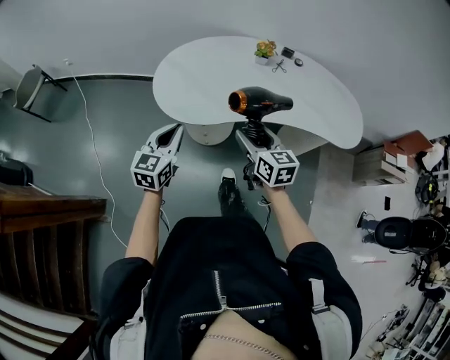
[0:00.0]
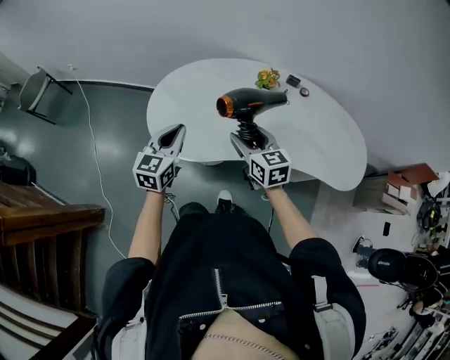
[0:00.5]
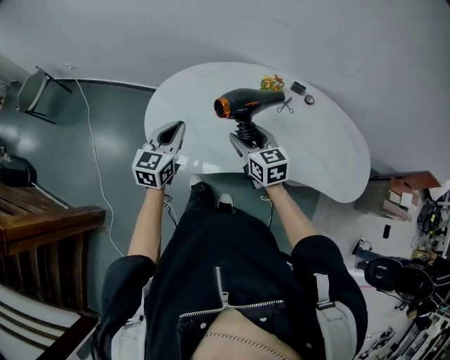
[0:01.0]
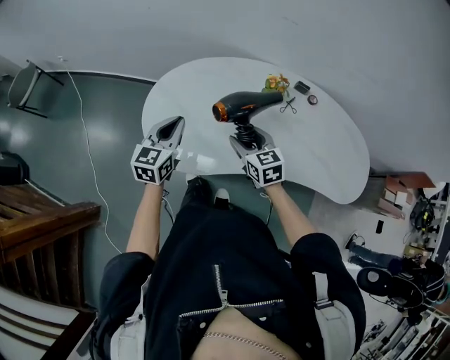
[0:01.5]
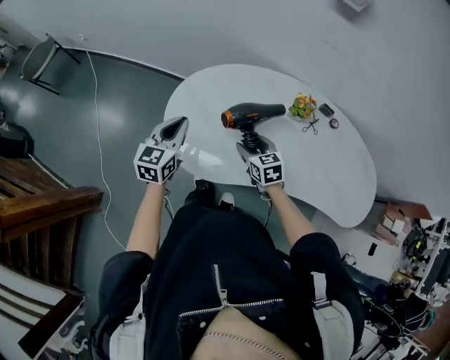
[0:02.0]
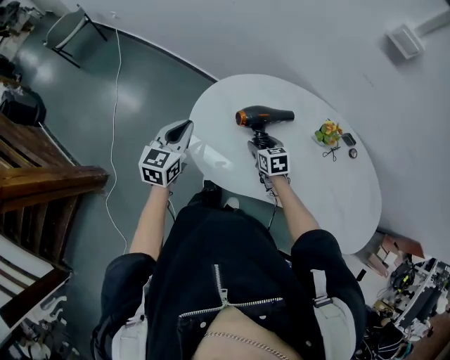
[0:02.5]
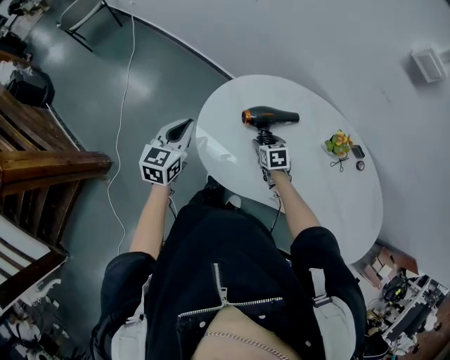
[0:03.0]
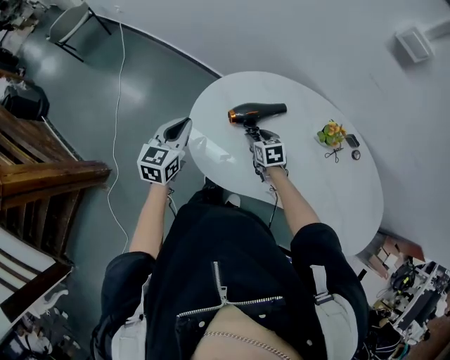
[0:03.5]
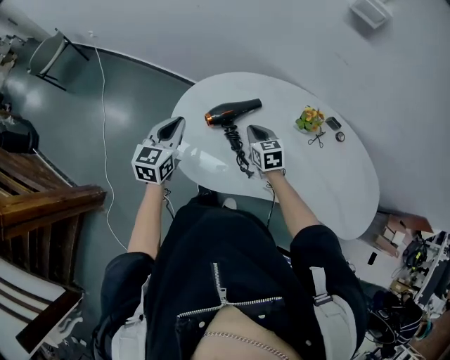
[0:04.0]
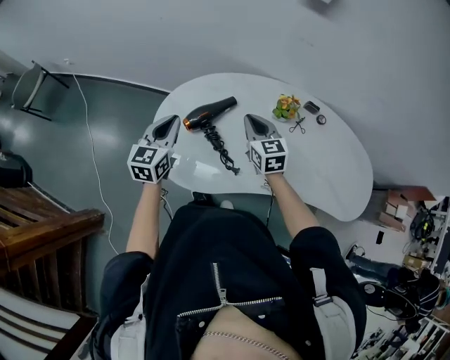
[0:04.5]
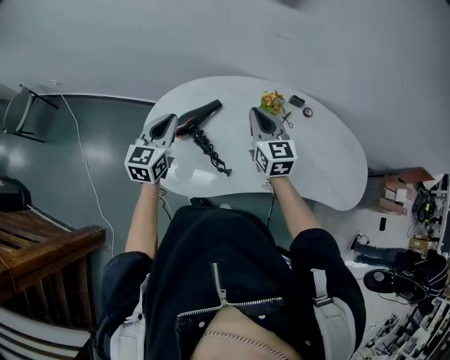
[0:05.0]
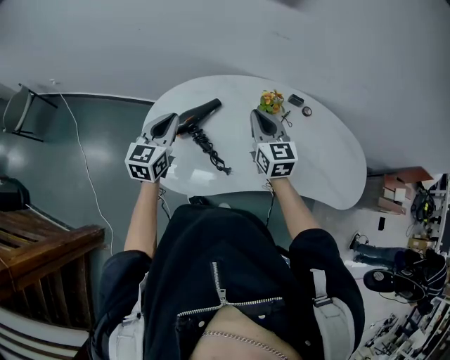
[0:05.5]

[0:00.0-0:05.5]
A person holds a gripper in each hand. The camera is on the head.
0:00.0 to 0:02.0: The left gripper is displaced forward by roughly 30 cm, while the right gripper shifts some 30 cm forward and downward, and changes its angle by some 30 degrees.
0:02.0 to 0:03.5: The right gripper heads forward, downward and to the left, covering roughly 15 cm. Meanwhile the left gripper moves to the left, approximately 10 cm.
0:03.5 to 0:05.5: The left gripper ends up some 20 cm from where it was, and turns by roughly 20 degrees. The right gripper is displaced upward by approximately 25 cm, tips its fingers upward by approximately 40 degrees, and closes.

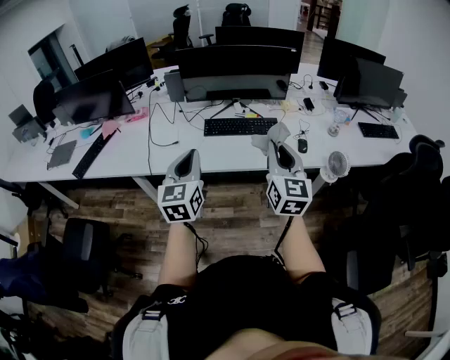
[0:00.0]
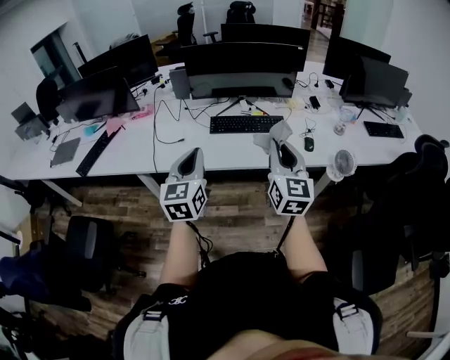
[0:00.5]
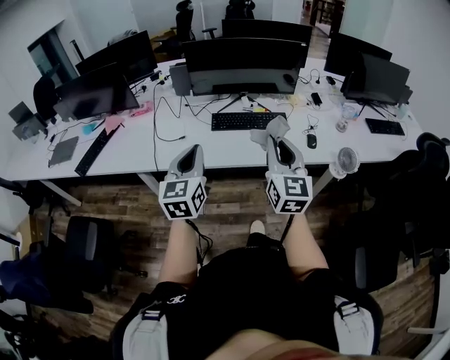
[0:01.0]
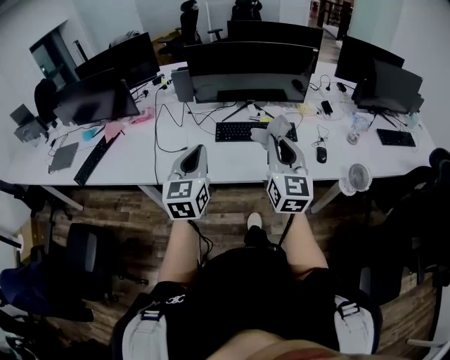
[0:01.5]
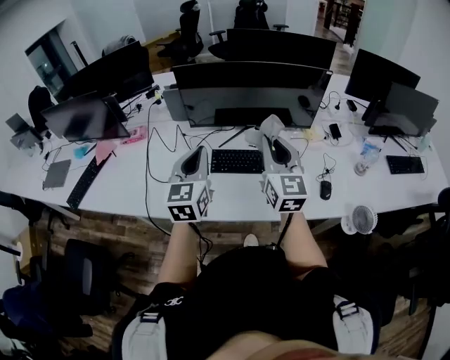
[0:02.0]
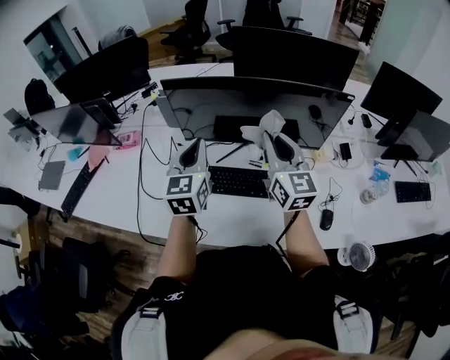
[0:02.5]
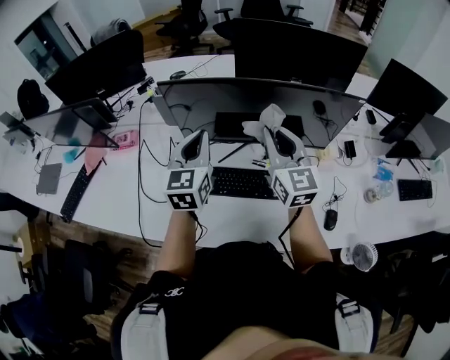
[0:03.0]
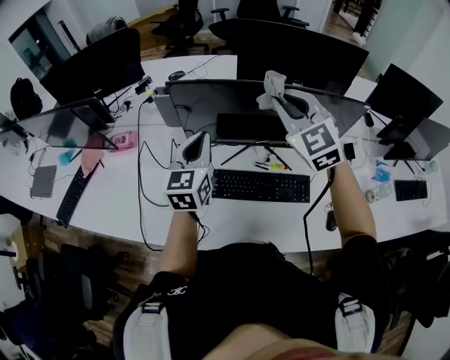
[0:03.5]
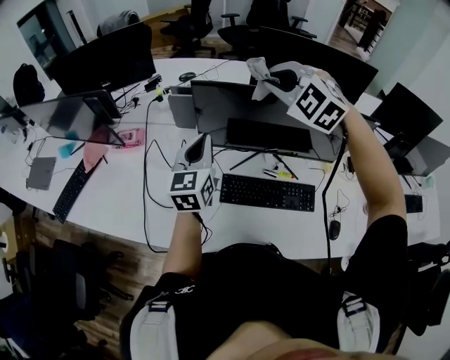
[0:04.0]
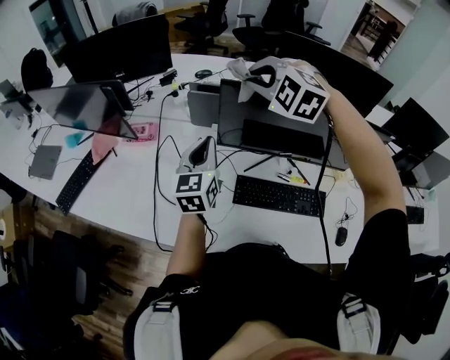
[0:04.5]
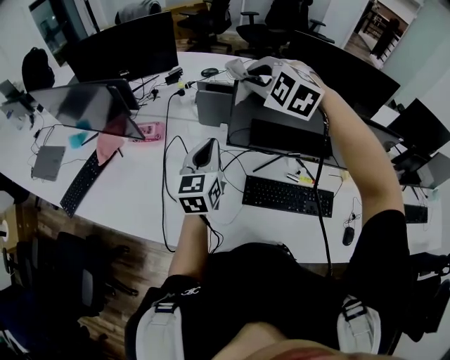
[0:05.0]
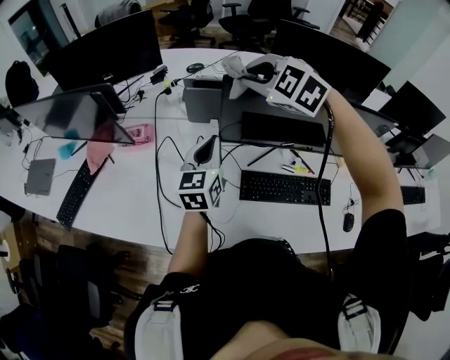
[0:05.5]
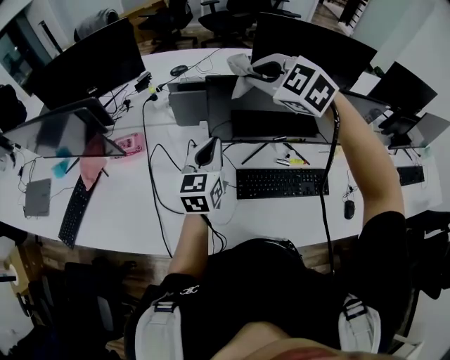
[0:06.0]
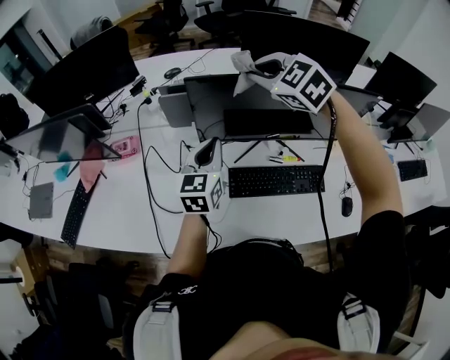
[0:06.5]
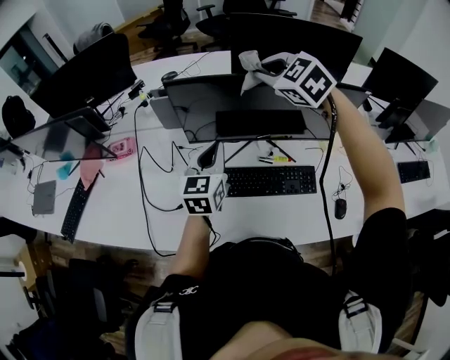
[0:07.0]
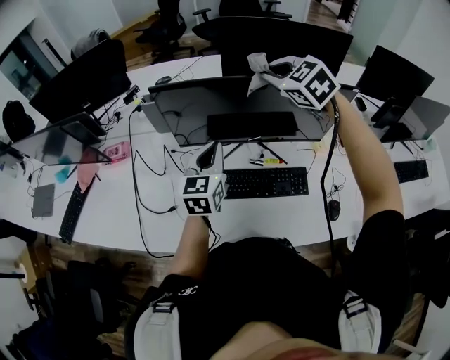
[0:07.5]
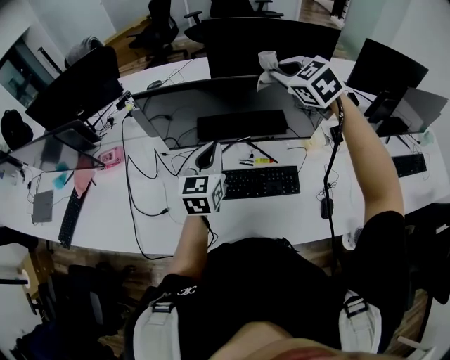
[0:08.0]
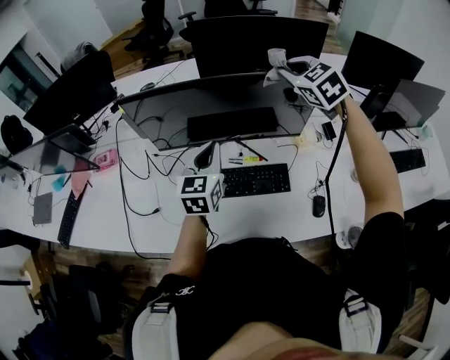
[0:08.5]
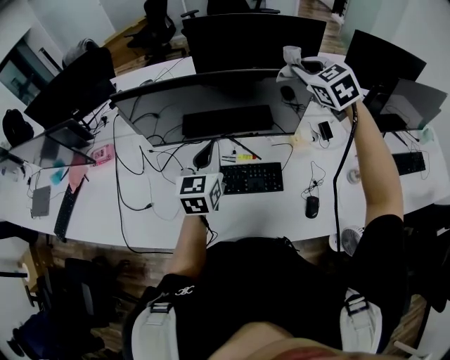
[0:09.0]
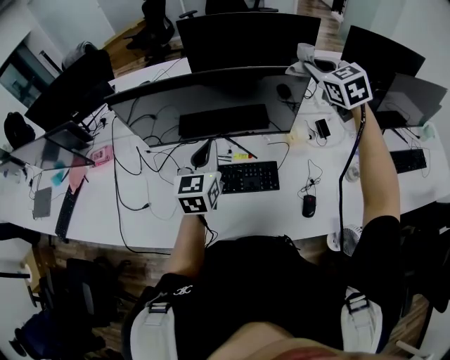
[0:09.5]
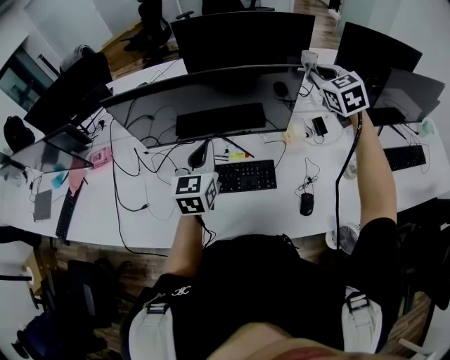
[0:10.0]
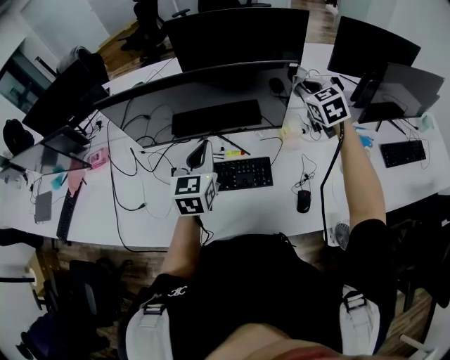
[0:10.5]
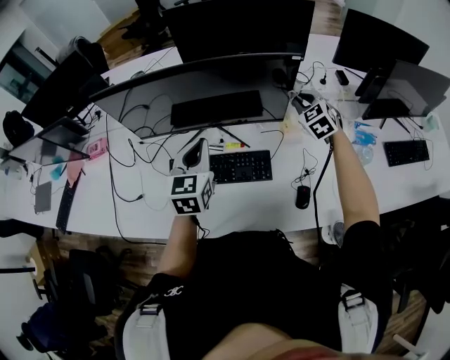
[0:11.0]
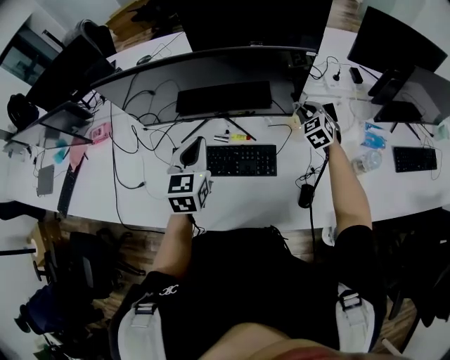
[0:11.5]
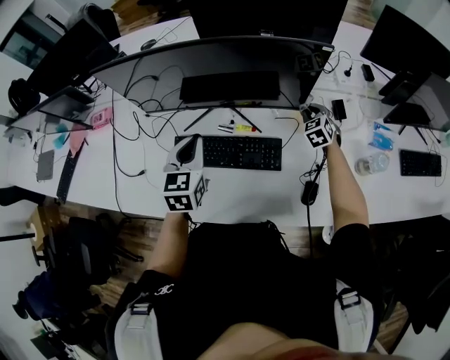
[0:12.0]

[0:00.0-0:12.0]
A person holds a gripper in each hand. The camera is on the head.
0:00.0 to 0:02.0: Both grippers move forward, about 30 cm.
0:02.0 to 0:04.0: Both grippers move forward, approximately 25 cm. The right gripper tips its fingers downward by some 40 degrees.
0:04.0 to 0:06.0: The left gripper shifts approximately 5 cm downward, and goes to the left and returns, approximately 10 cm each way. Meanwhile the right gripper shifts about 10 cm to the left.
0:06.0 to 0:08.0: The left gripper travels to the right by some 20 cm, while the right gripper is displaced to the right by about 30 cm, and changes its angle by approximately 20 degrees.
0:08.0 to 0:10.0: The left gripper heads to the right, covering some 10 cm. Meanwhile the right gripper goes about 25 cm to the right.
0:10.0 to 0:12.0: The left gripper shifts about 5 cm downward. The right gripper shifts some 35 cm downward.

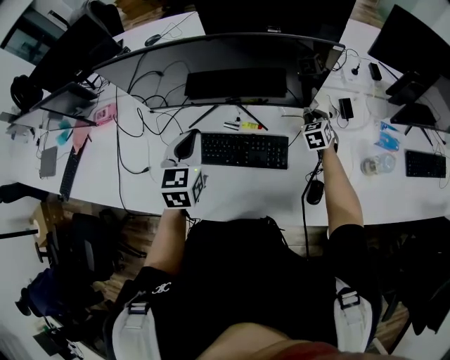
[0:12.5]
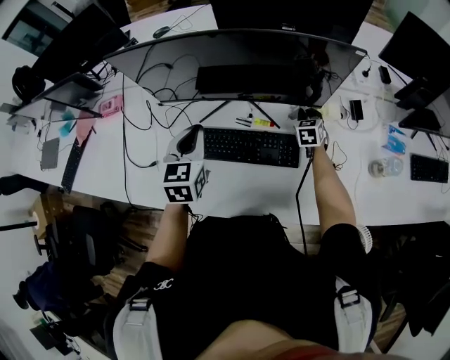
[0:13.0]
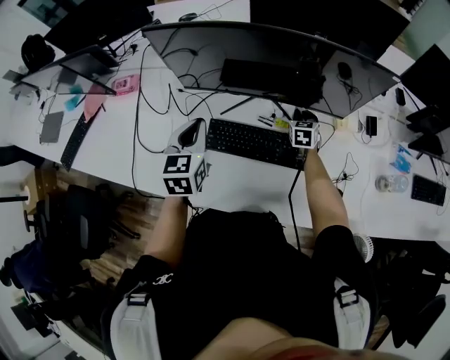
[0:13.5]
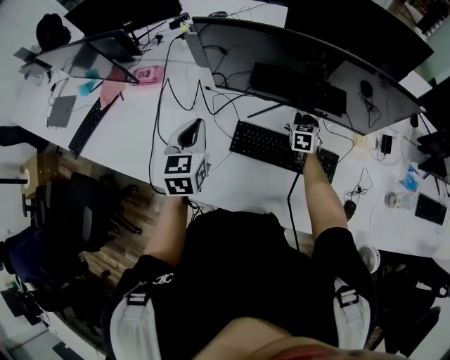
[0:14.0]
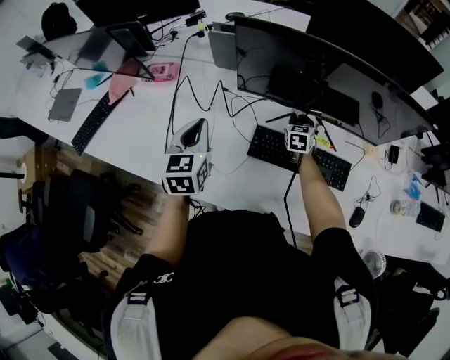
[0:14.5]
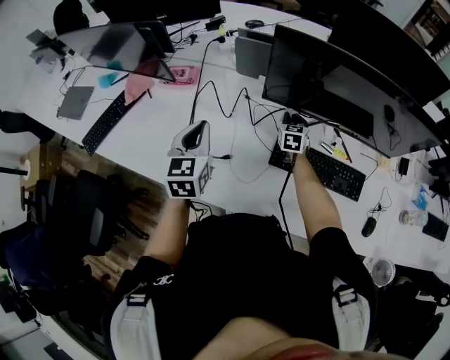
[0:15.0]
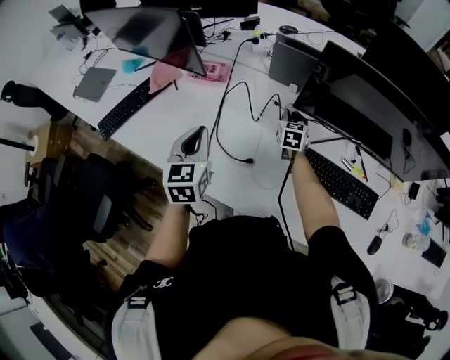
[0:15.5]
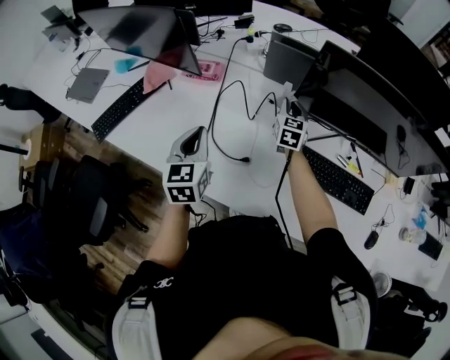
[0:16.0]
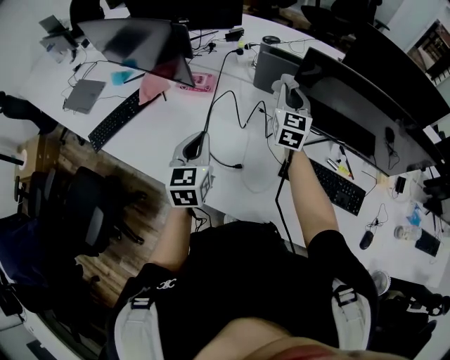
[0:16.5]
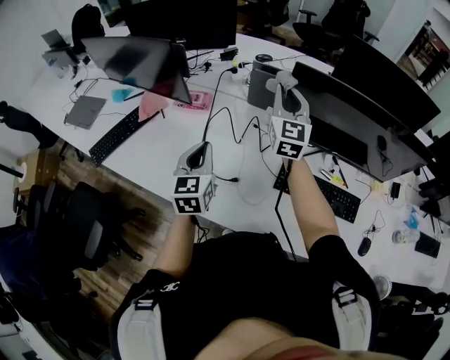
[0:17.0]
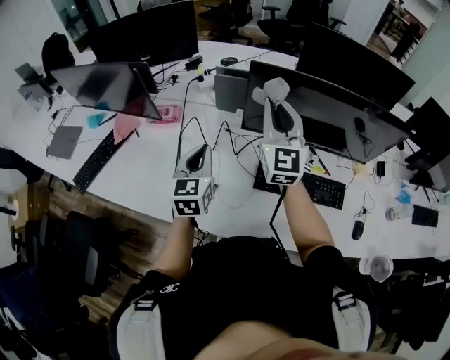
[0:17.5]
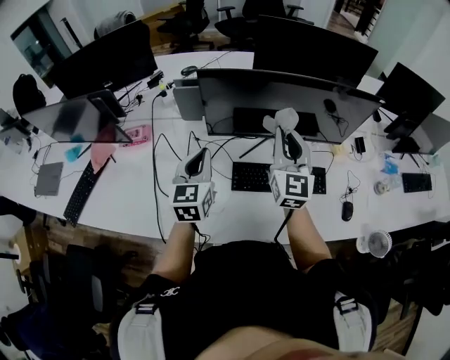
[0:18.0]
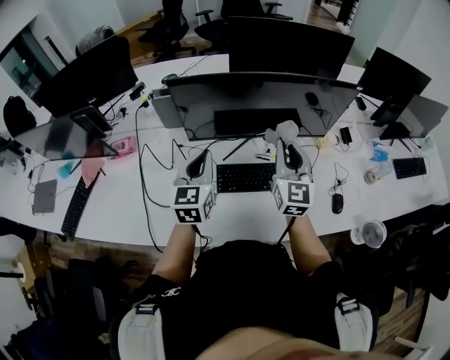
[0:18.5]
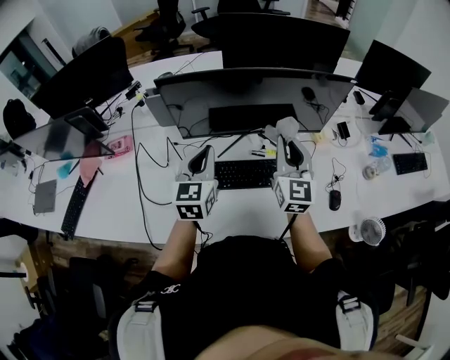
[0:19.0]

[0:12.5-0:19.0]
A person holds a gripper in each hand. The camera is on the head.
0:12.5 to 0:14.5: Both grippers travel together to the left, approximately 35 cm.
0:14.5 to 0:17.0: The left gripper goes some 15 cm to the left; the right gripper is displaced upward and to the left by approximately 40 cm, and points its fingers about 40 degrees further upward.
0:17.0 to 0:19.0: Both grippers travel together to the right, roughly 30 cm. The right gripper swivels approximately 20 degrees; the left gripper swivels approximately 30 degrees.

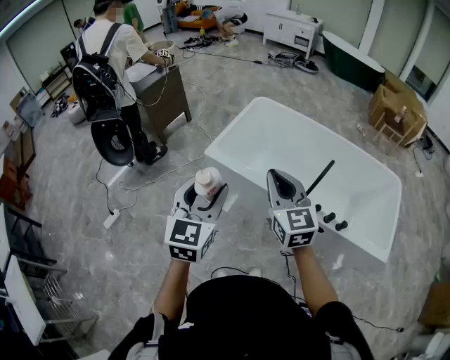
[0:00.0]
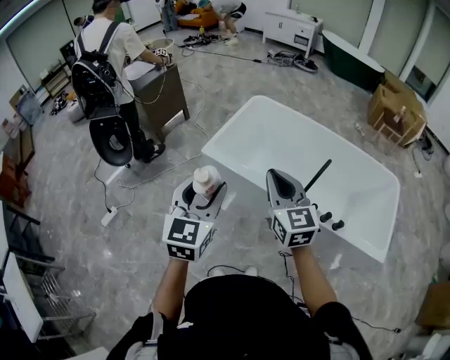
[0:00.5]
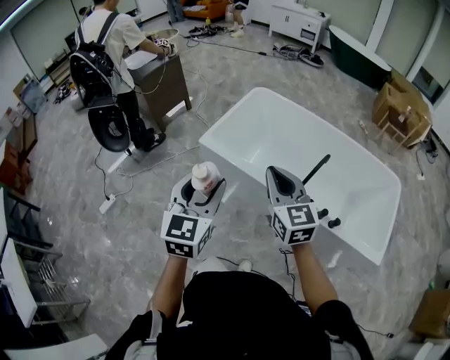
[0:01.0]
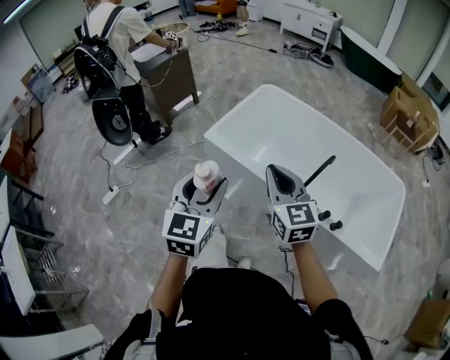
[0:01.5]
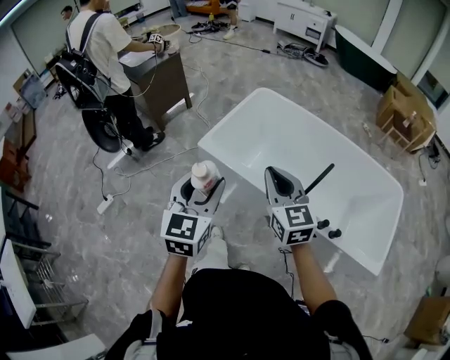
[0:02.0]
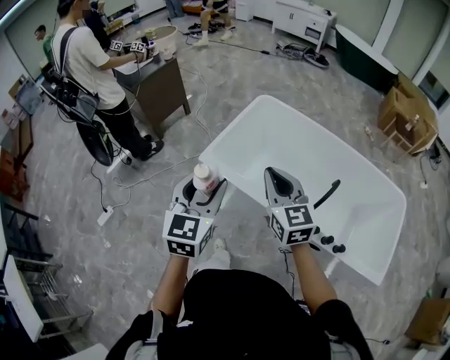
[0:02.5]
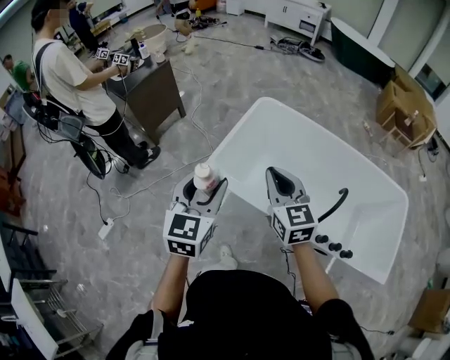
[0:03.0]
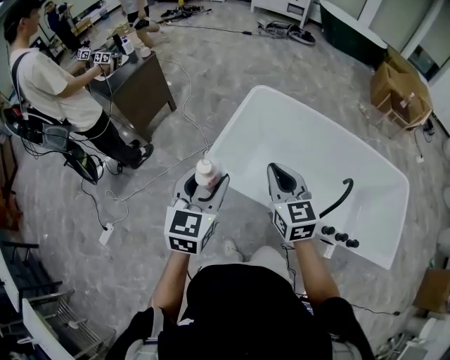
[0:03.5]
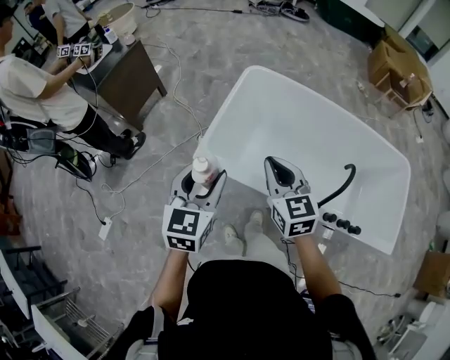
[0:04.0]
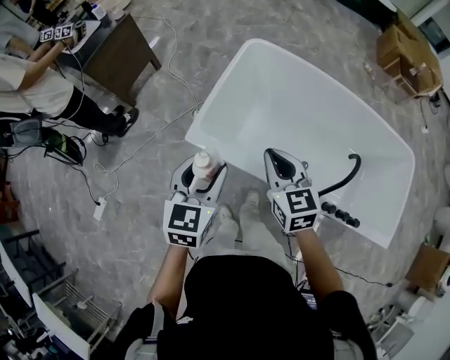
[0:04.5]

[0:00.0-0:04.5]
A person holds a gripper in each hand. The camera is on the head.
0:00.0 to 0:02.0: The two grippers go roughly 10 cm forward and to the right.
0:02.0 to 0:04.5: Both grippers travel together forward and downward, about 30 cm.
